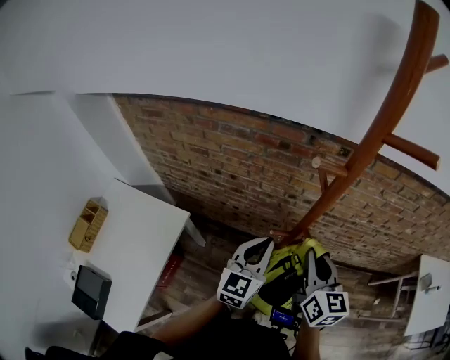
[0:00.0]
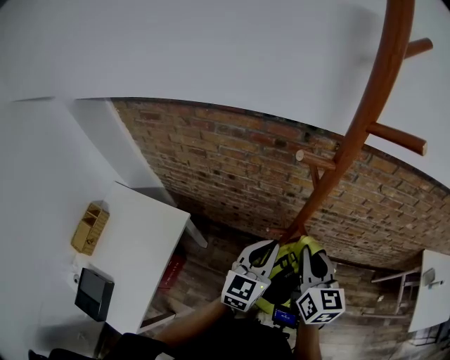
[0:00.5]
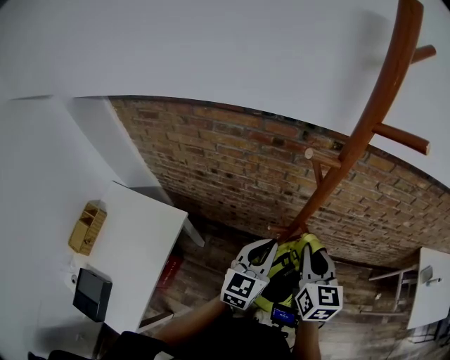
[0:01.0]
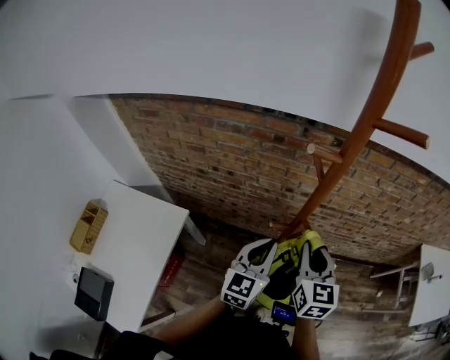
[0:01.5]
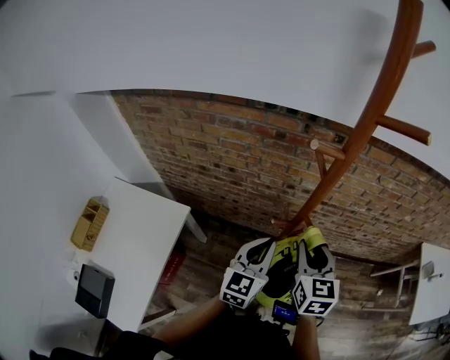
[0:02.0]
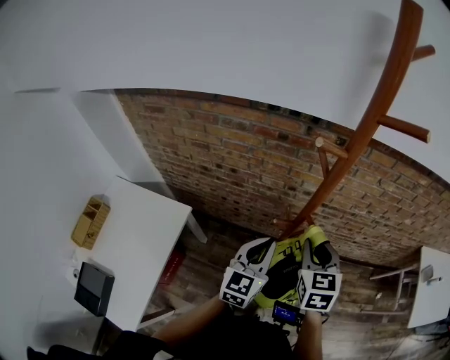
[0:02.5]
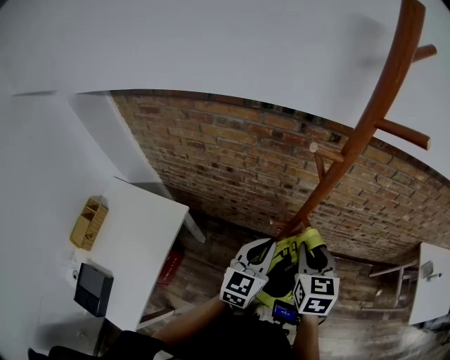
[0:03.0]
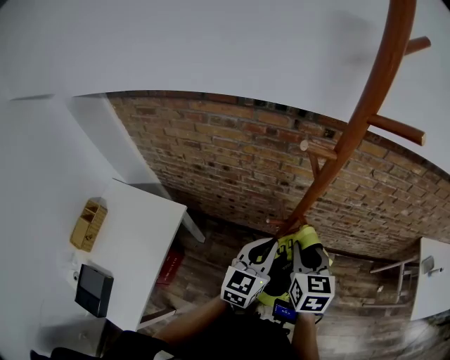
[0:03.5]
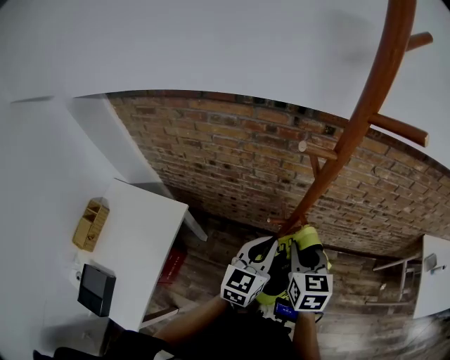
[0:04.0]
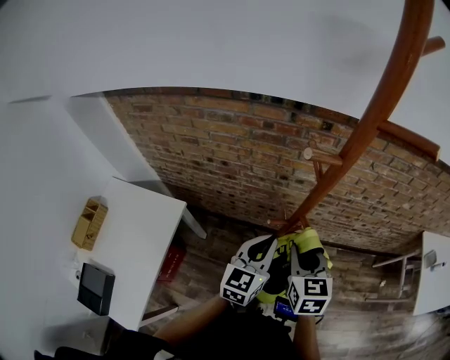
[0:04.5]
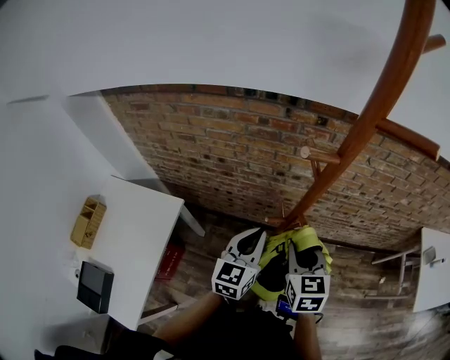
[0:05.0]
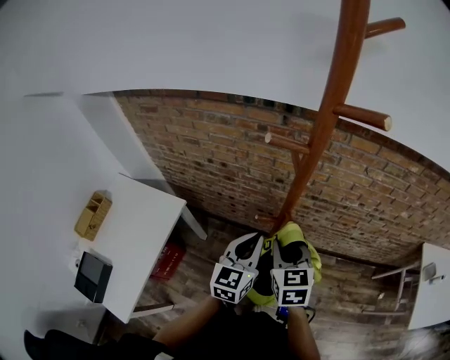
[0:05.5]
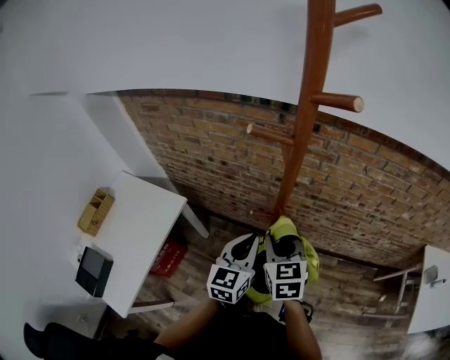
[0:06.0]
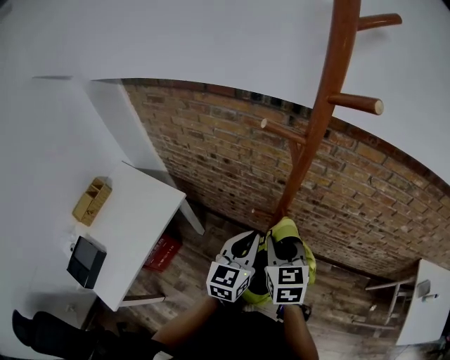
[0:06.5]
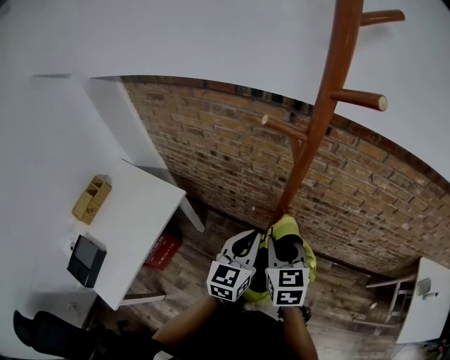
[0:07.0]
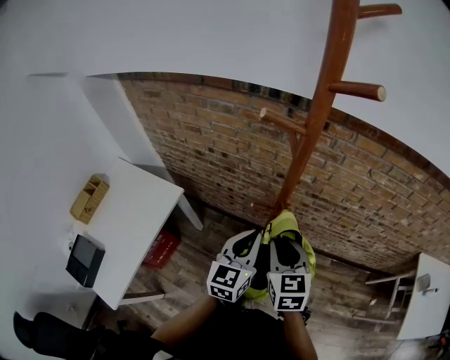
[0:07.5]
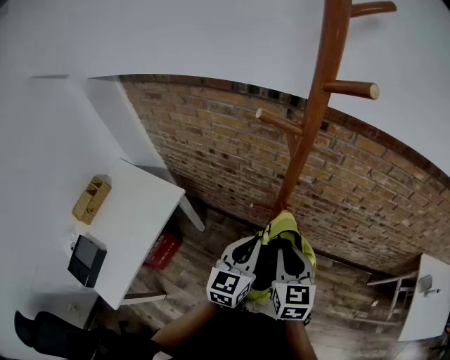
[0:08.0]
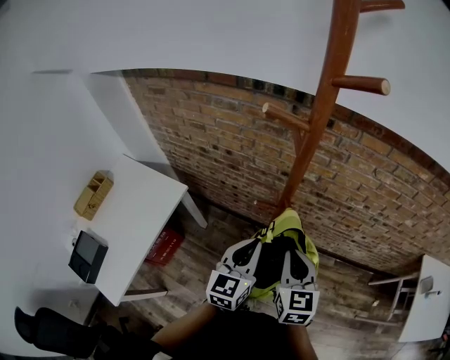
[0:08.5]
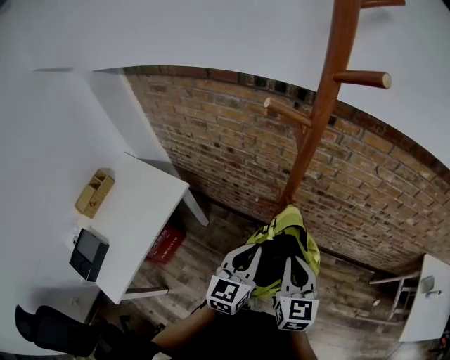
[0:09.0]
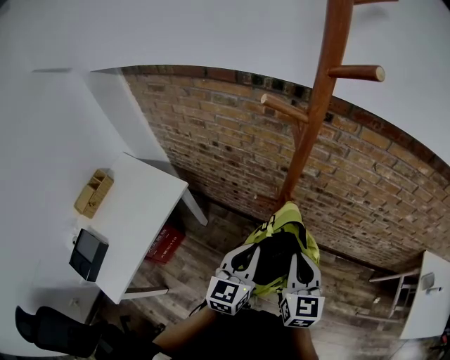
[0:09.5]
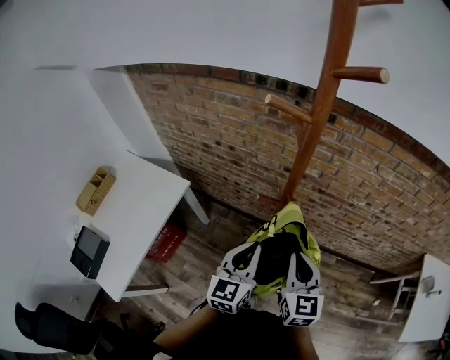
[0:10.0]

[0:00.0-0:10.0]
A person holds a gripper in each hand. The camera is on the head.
0:00.0 to 0:02.0: The grippers move only a little.
0:02.0 to 0:06.0: The grippers make only small movements.
0:06.0 to 0:08.0: The right gripper shifts by roughly 5 cm.
0:08.0 to 0:10.0: There are only small adjustments of the grippers.

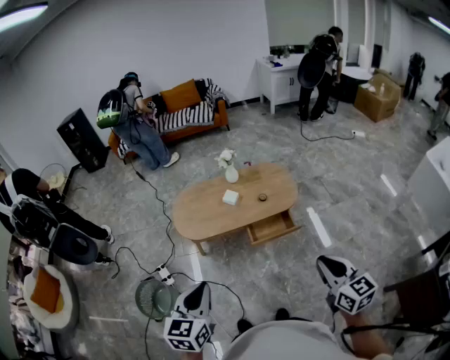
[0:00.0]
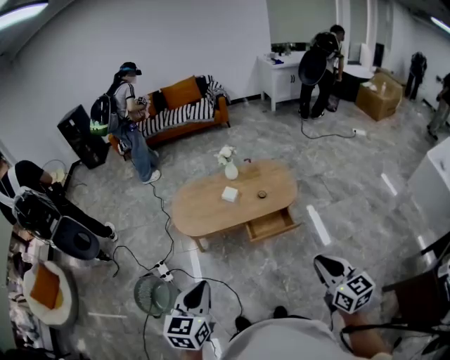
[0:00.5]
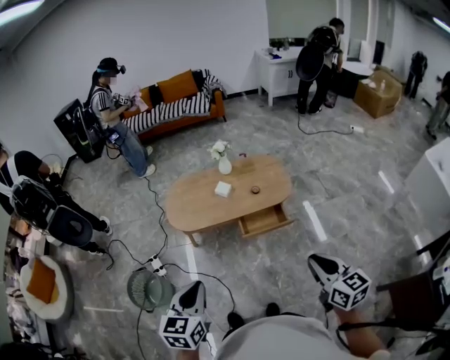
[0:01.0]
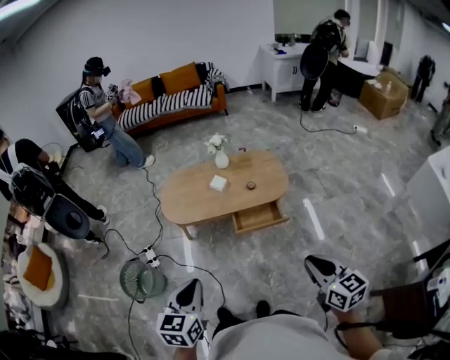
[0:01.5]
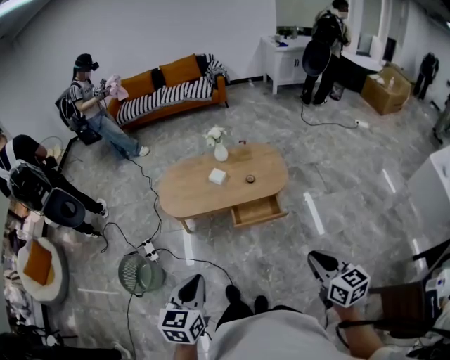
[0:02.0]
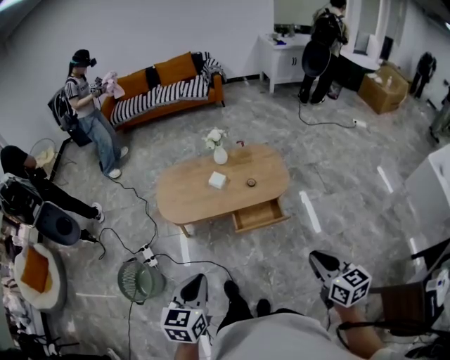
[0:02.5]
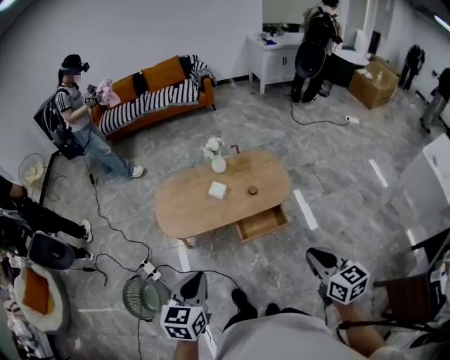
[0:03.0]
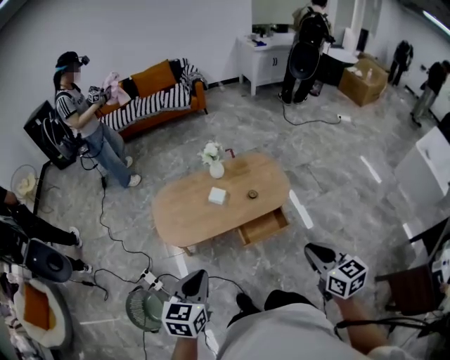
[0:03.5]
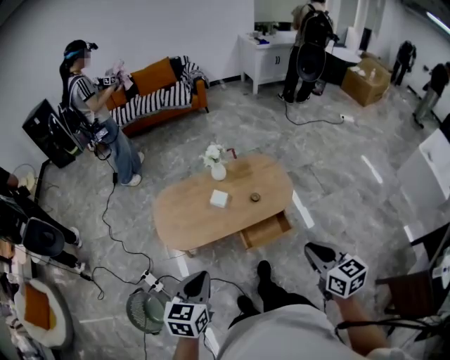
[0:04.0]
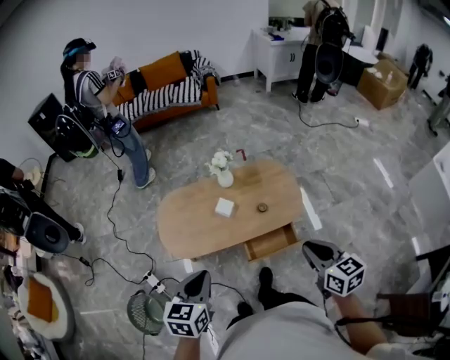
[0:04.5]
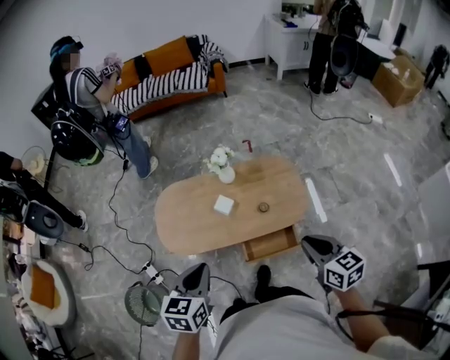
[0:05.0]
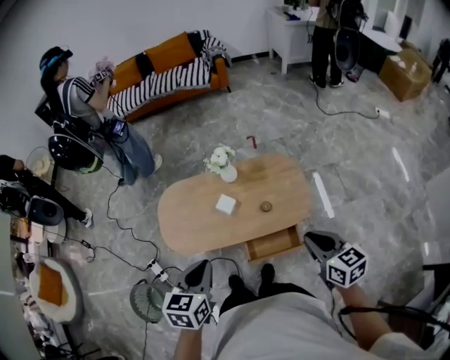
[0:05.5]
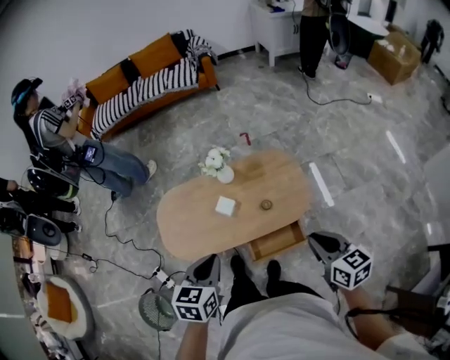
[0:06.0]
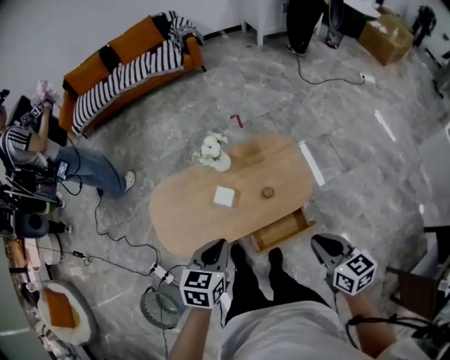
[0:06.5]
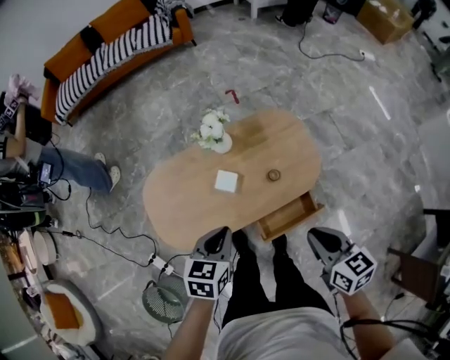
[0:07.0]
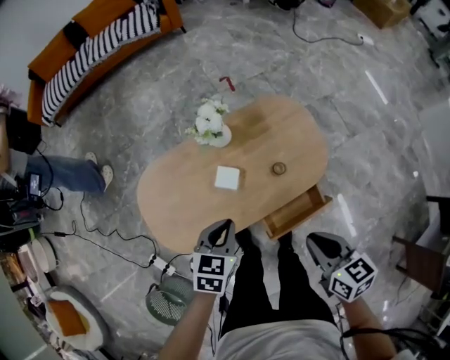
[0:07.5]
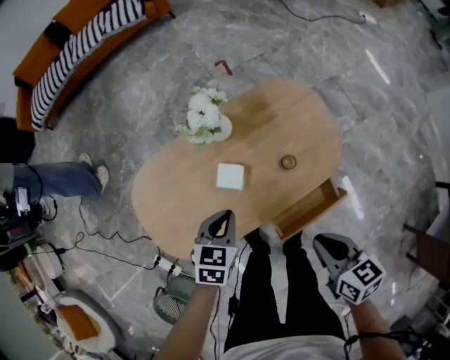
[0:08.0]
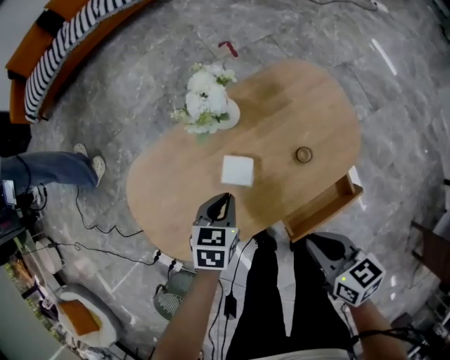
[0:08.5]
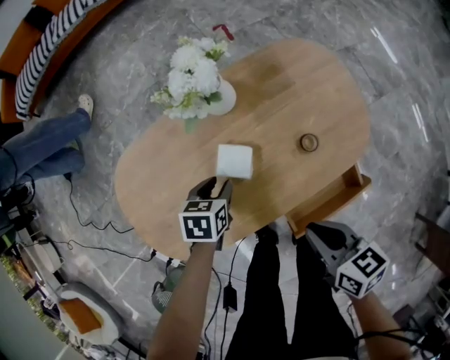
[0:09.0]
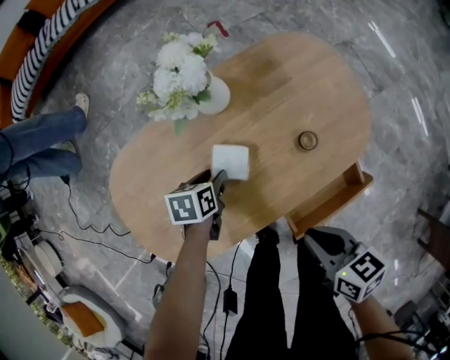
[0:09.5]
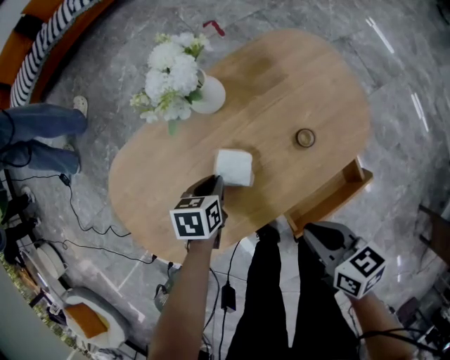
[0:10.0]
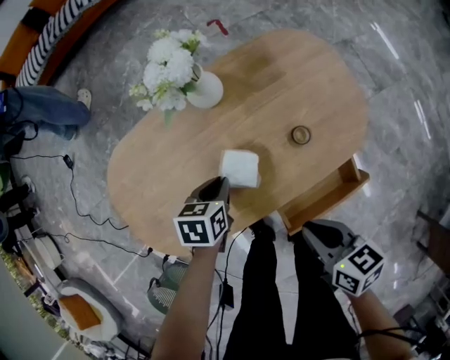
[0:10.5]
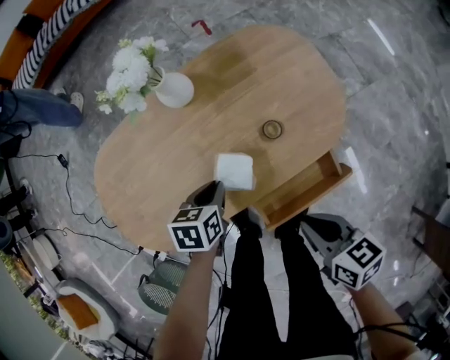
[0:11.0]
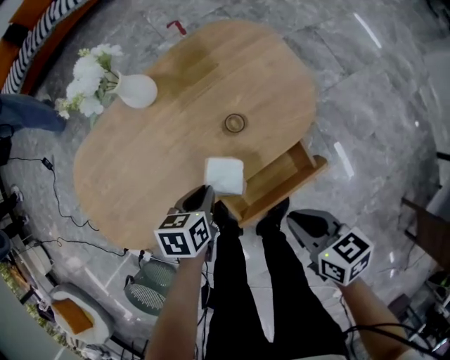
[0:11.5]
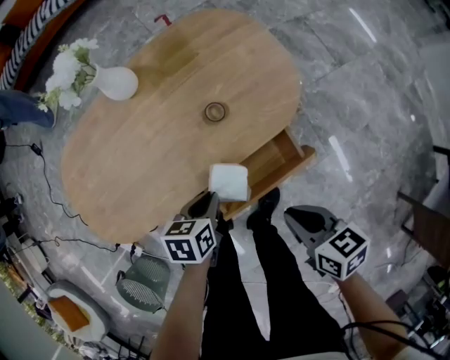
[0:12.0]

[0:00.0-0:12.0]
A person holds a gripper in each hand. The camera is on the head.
0:00.0 to 0:02.0: Both grippers move to the right, roughly 10 cm.
0:02.0 to 0:04.0: The grippers both shift forward and to the left by some 25 cm.
0:04.0 to 0:06.0: The grippers both shift forward and to the right by roughly 25 cm.
0:06.0 to 0:08.0: The left gripper shifts roughly 35 cm downward and forward, and rotates about 20 degrees; the right gripper goes about 25 cm downward and to the left, and rotates some 20 degrees.
0:08.0 to 0:10.0: Both grippers move downward, about 15 cm. The left gripper turns by approximately 20 degrees, and opens and closes again.
0:10.0 to 0:12.0: Both grippers move to the right and backward, roughly 25 cm.

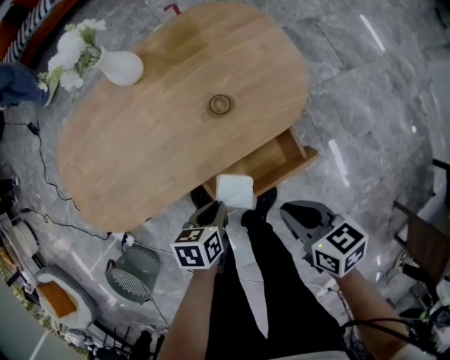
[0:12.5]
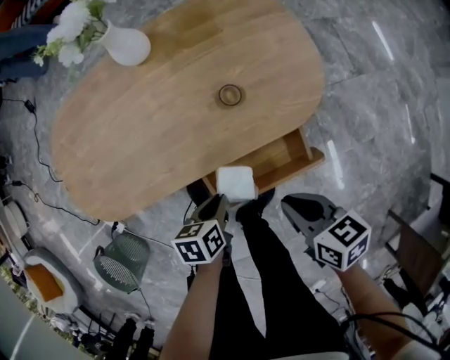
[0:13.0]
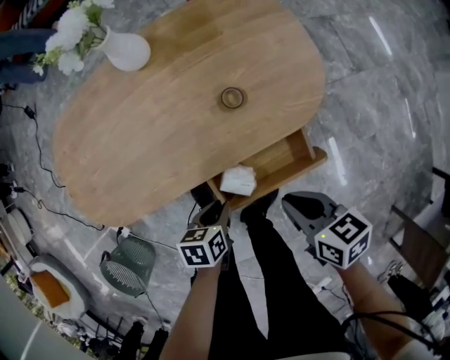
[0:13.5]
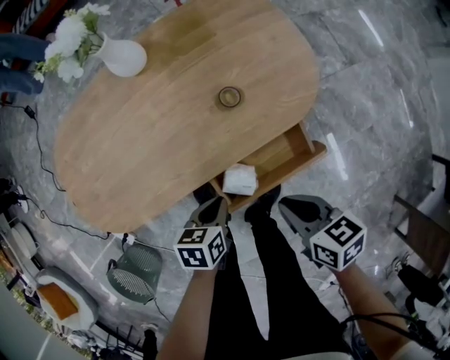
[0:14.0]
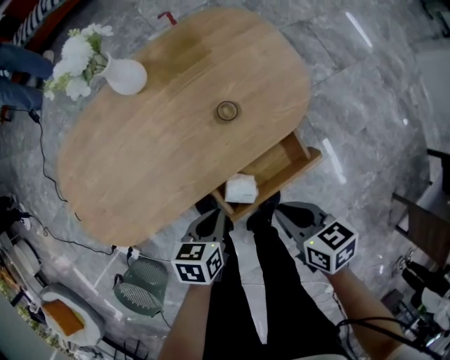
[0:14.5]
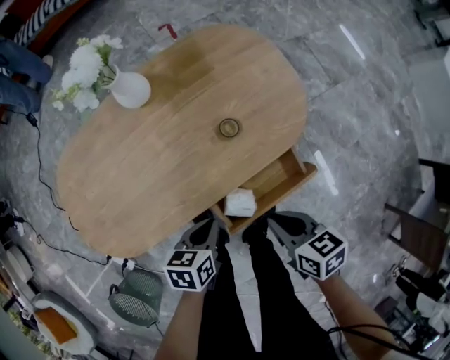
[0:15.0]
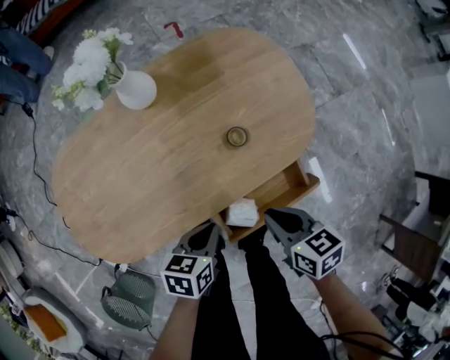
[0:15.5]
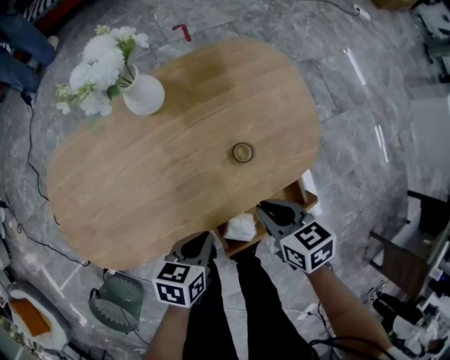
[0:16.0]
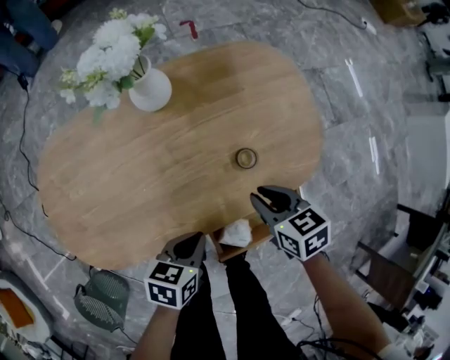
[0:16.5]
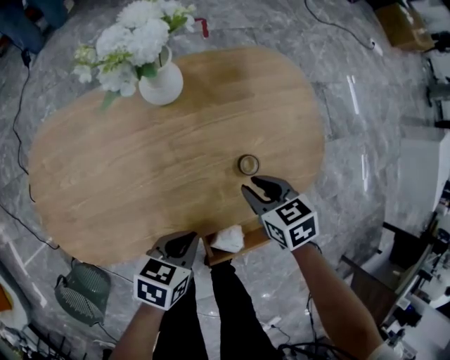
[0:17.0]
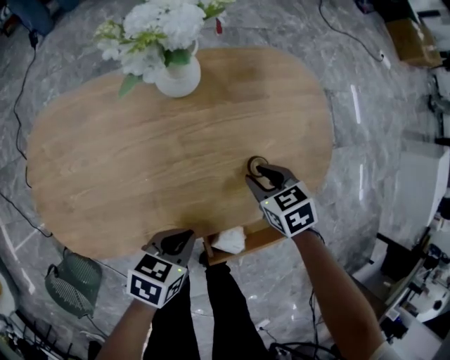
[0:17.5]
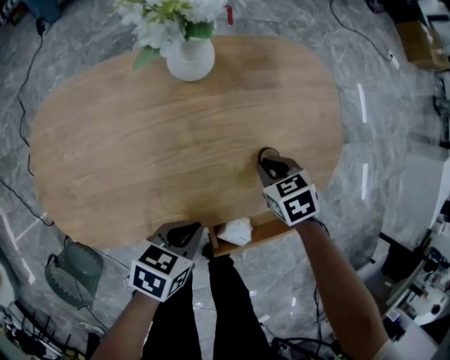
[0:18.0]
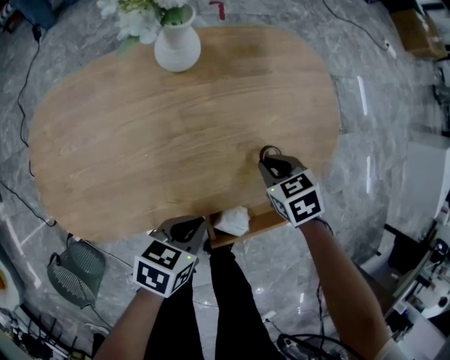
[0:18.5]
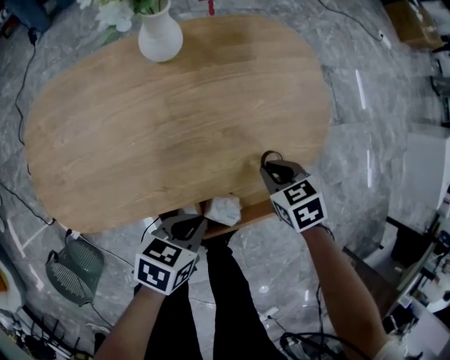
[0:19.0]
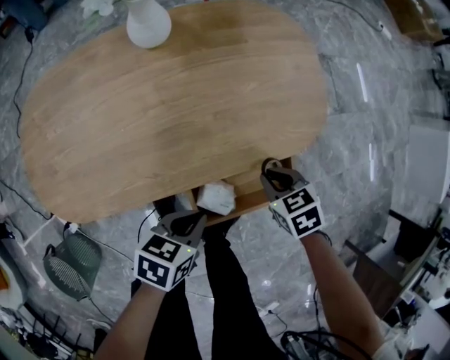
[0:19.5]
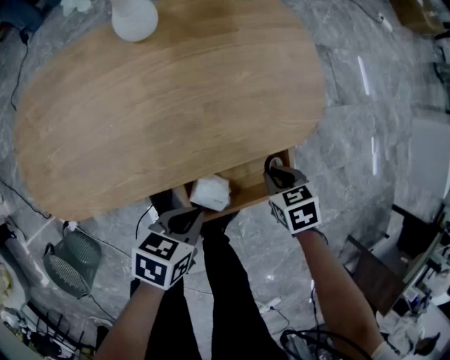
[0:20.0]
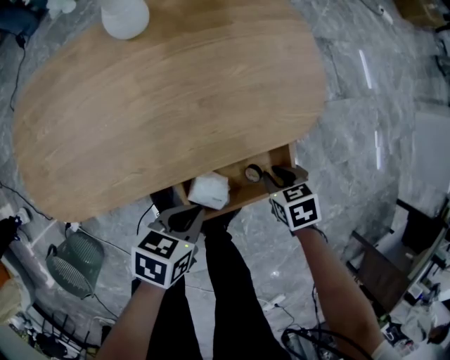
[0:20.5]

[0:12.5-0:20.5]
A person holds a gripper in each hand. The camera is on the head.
0:12.5 to 0:14.5: The grippers stay close to where they were, moving slightly.
0:14.5 to 0:16.5: The right gripper travels forward by some 15 cm, while the left gripper shifts approximately 5 cm forward.
0:16.5 to 0:18.5: The right gripper goes roughly 5 cm downward, and changes its angle by roughly 20 degrees.
0:18.5 to 0:20.5: The right gripper is displaced to the right and backward by about 20 cm. The left gripper moves to the right, some 10 cm.
